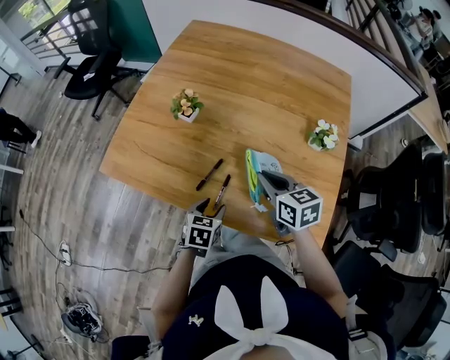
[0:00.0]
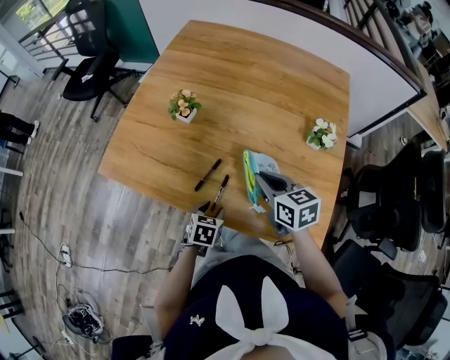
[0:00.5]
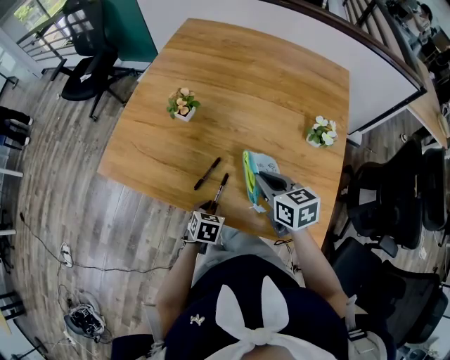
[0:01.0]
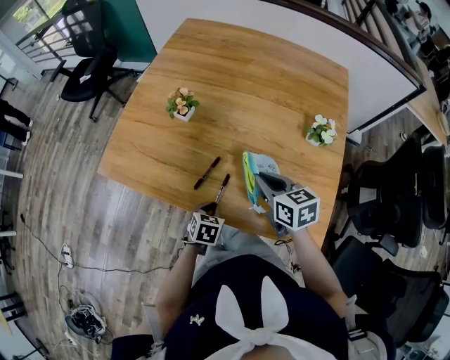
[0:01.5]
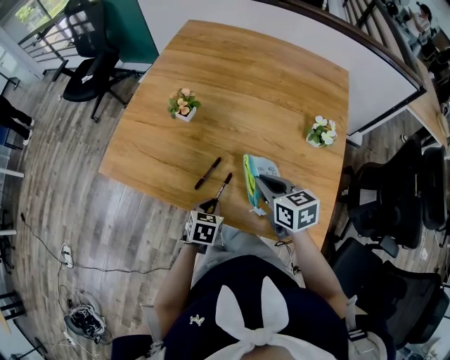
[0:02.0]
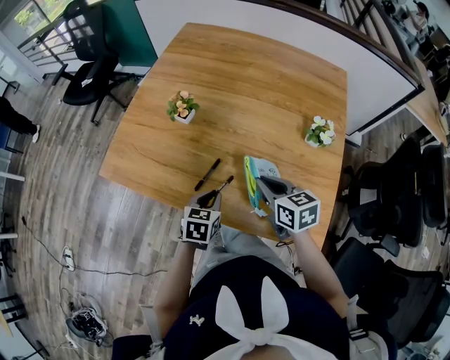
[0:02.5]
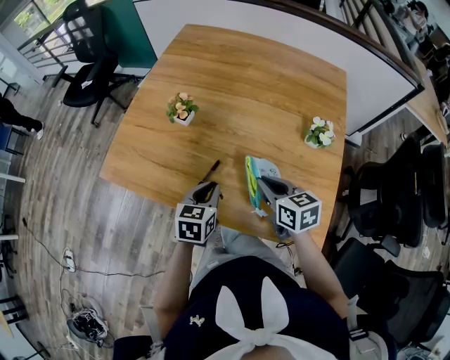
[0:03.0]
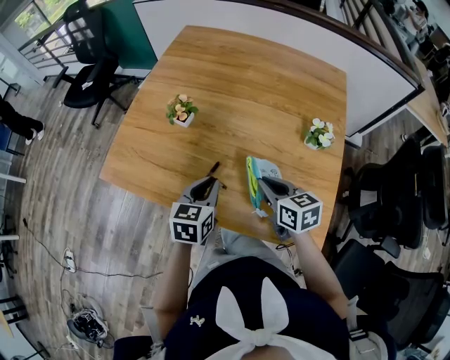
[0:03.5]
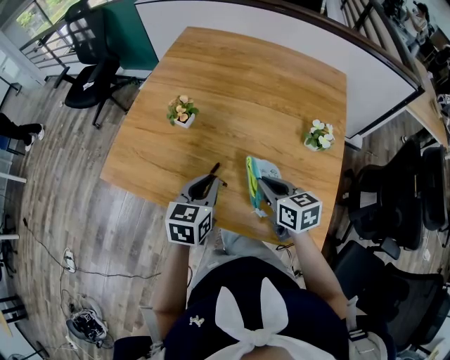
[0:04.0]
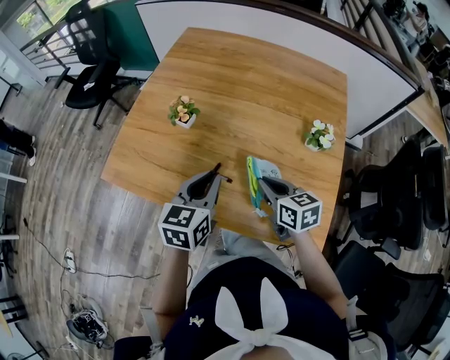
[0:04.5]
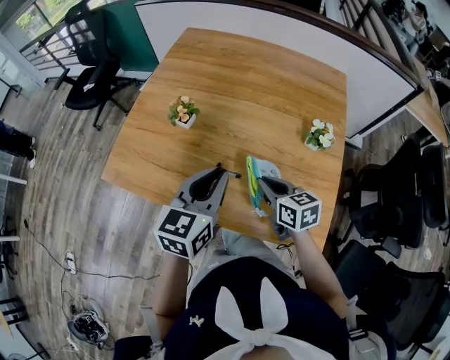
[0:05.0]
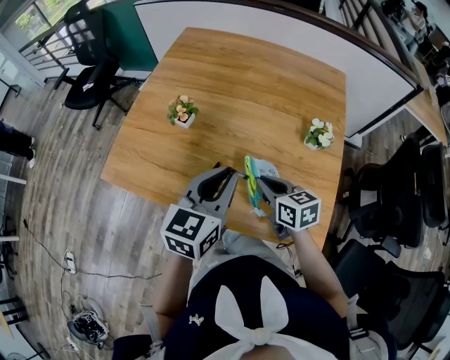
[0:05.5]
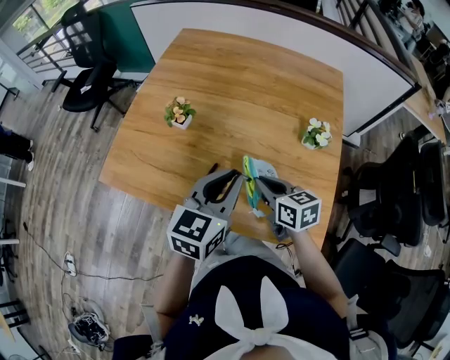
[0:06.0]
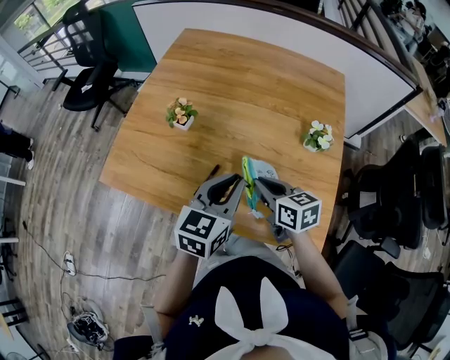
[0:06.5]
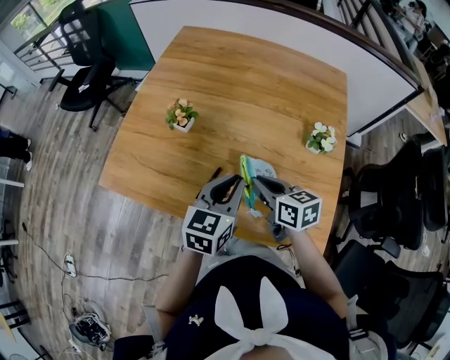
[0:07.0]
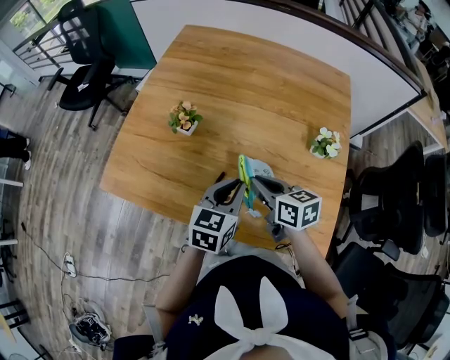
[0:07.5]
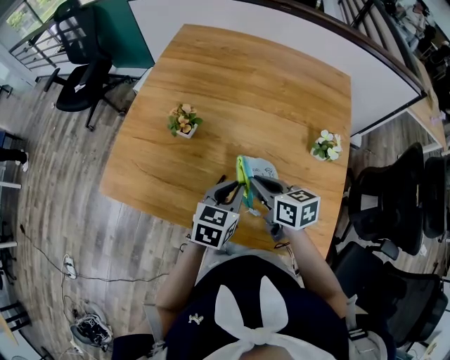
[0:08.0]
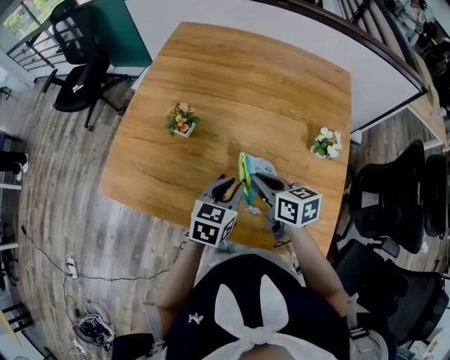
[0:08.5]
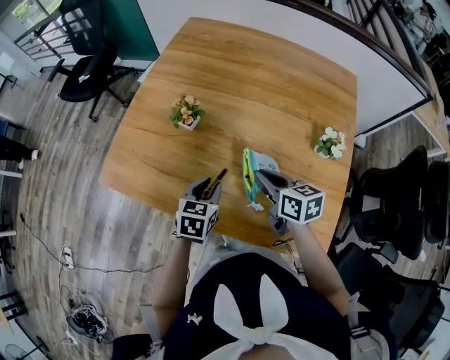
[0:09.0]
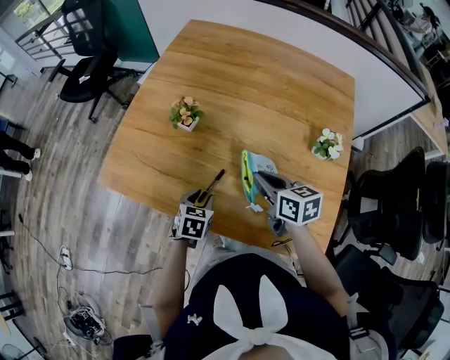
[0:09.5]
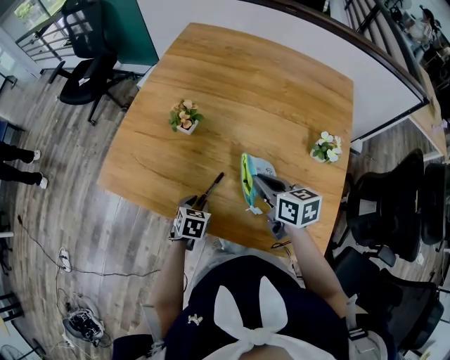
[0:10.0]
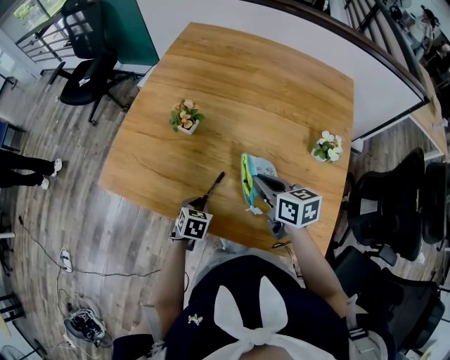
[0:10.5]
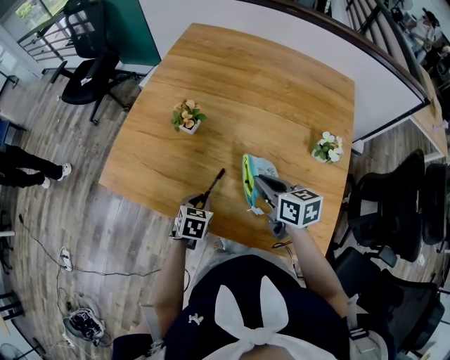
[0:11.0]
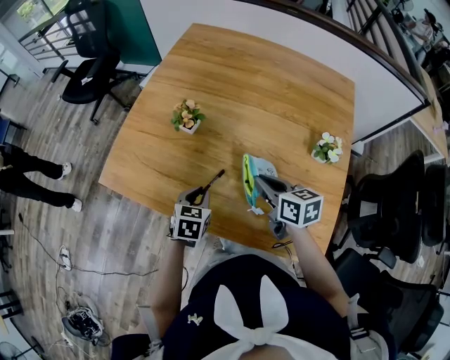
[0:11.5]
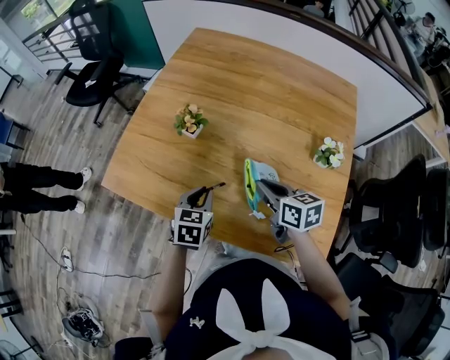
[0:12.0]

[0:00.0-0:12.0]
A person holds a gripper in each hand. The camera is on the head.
0:00.0 to 0:02.0: The left gripper closes.
0:02.0 to 0:04.0: The left gripper goes about 15 cm upward, and changes its angle by approximately 20 degrees.
0:04.0 to 0:06.0: The left gripper moves upward and to the right, approximately 10 cm.
0:06.0 to 0:08.0: The right gripper heads forward, covering some 5 cm. The left gripper shifts about 15 cm downward.
0:08.0 to 0:10.0: The left gripper shifts some 20 cm downward and to the left, swivels approximately 30 degrees, and opens.
0:10.0 to 0:12.0: The left gripper is displaced upward by roughly 10 cm.

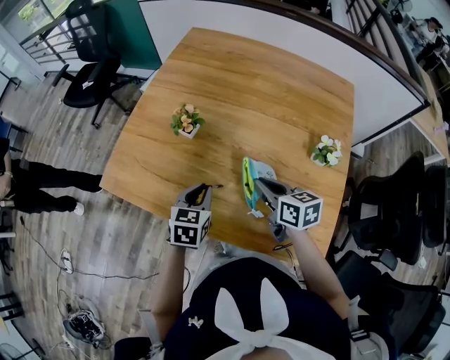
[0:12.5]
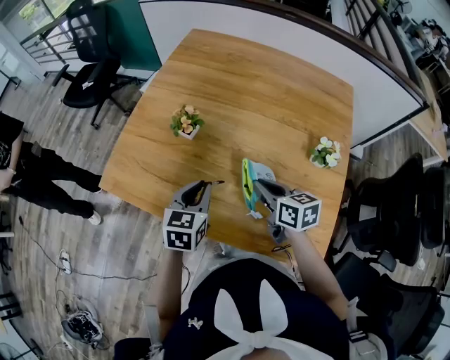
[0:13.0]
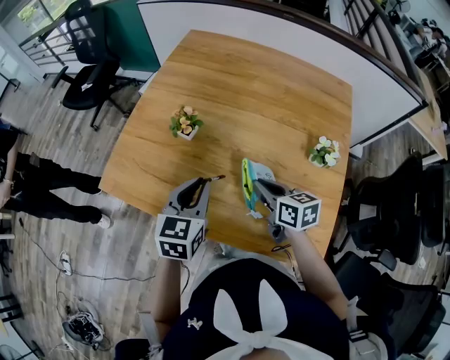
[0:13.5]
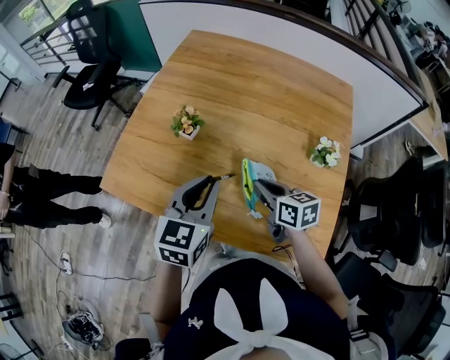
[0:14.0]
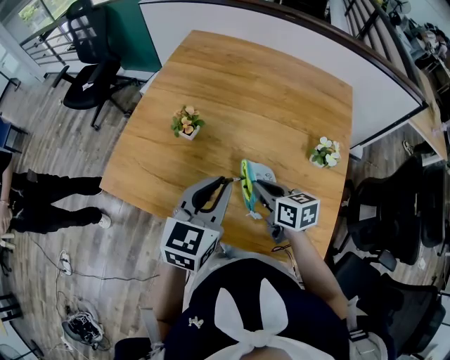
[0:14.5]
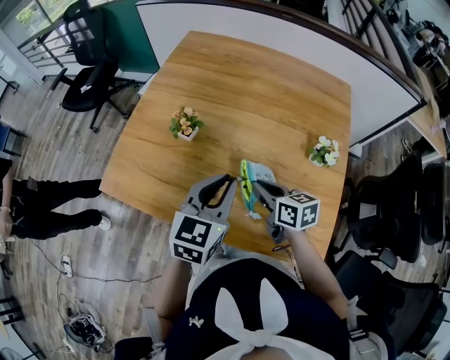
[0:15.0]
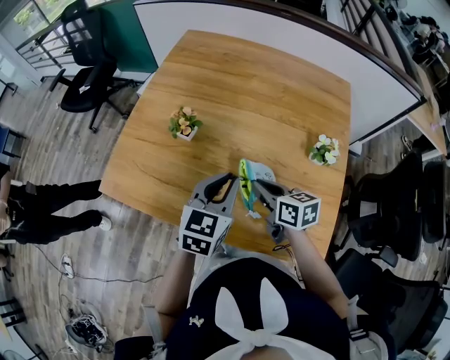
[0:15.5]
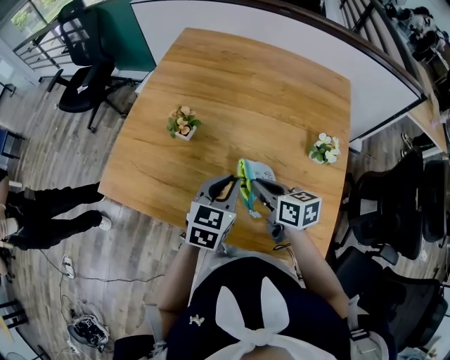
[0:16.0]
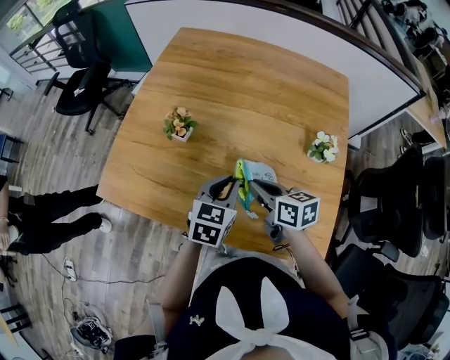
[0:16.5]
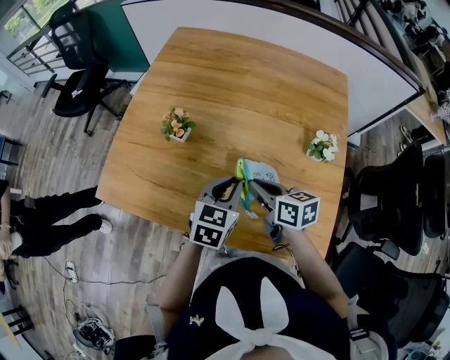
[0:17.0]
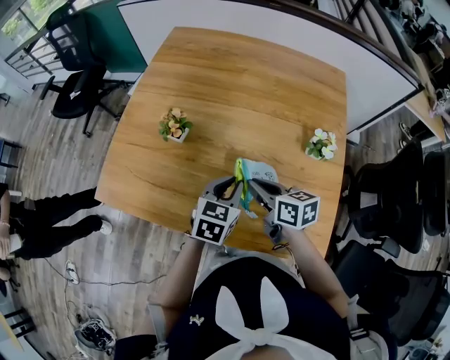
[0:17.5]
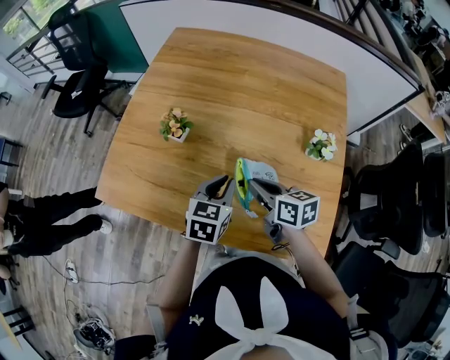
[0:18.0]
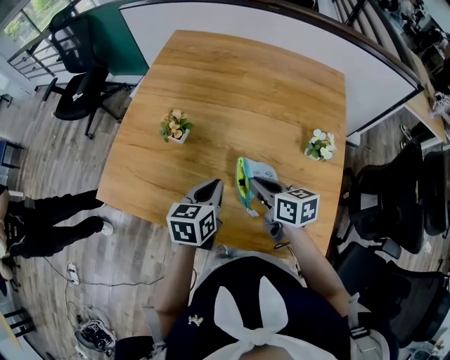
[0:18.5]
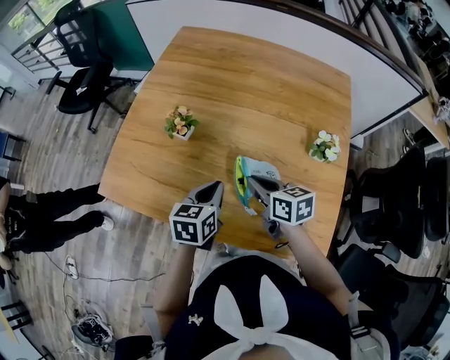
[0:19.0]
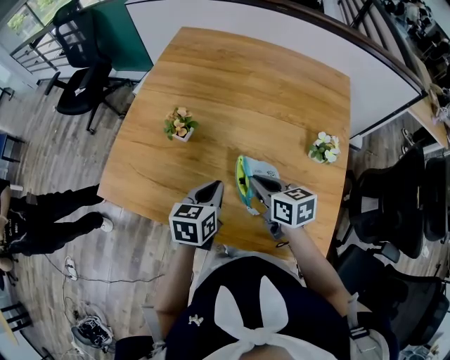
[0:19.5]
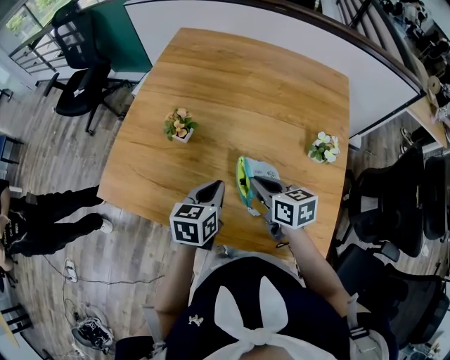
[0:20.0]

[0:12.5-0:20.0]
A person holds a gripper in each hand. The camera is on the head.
0:12.5 to 0:14.5: The left gripper heads upward, covering some 15 cm, and changes its angle by some 20 degrees.
0:14.5 to 0:16.5: The left gripper goes approximately 10 cm downward.
0:16.5 to 0:20.0: The grippers make only small movements.

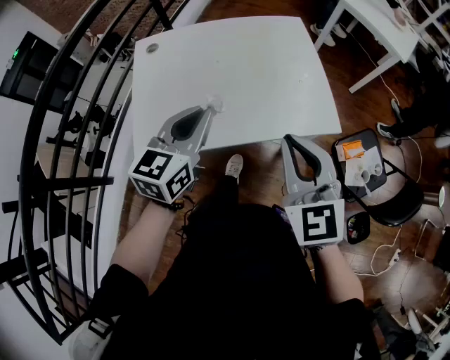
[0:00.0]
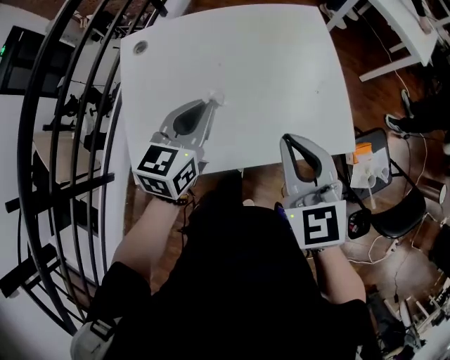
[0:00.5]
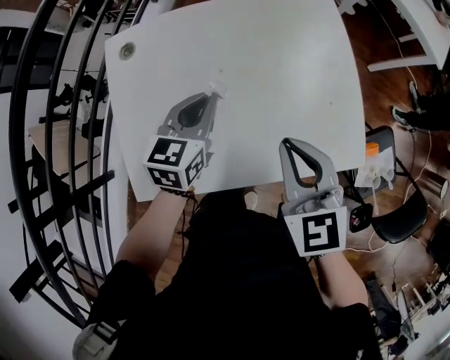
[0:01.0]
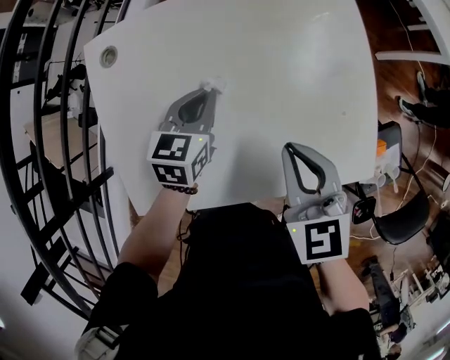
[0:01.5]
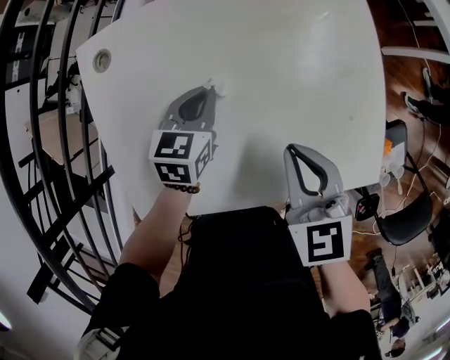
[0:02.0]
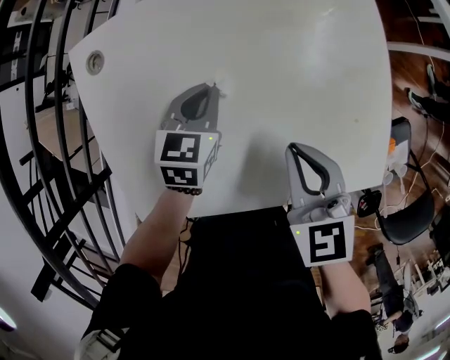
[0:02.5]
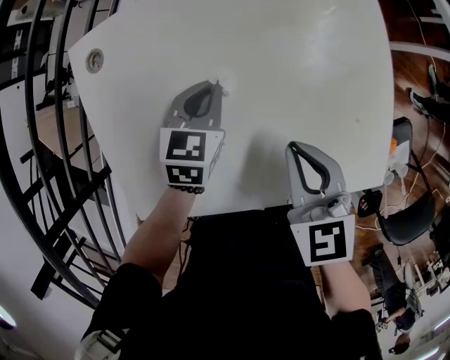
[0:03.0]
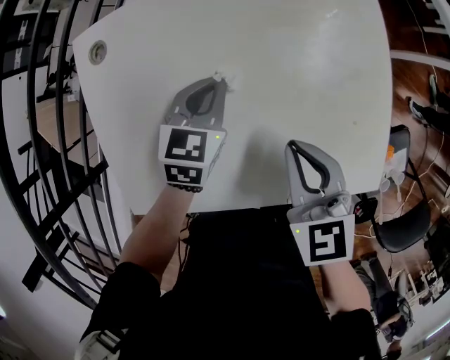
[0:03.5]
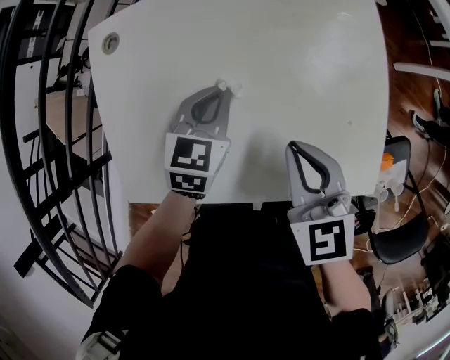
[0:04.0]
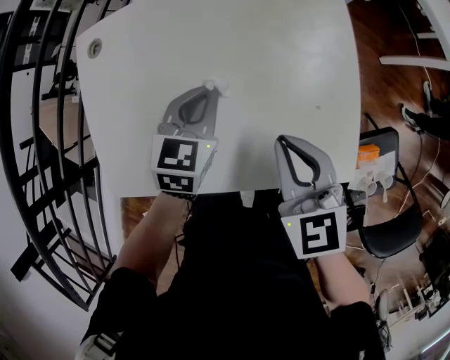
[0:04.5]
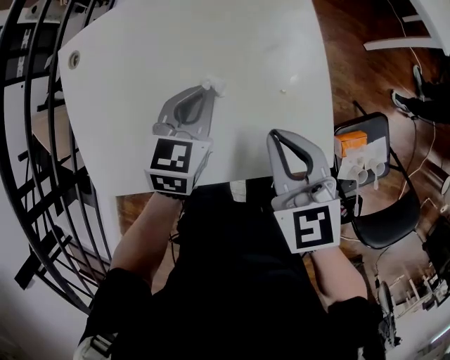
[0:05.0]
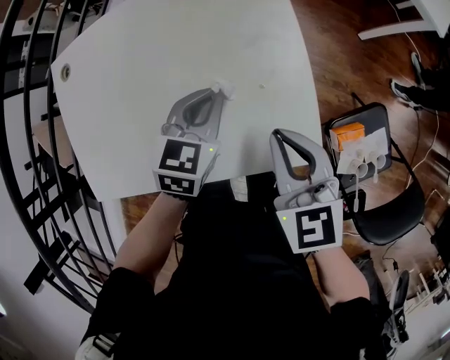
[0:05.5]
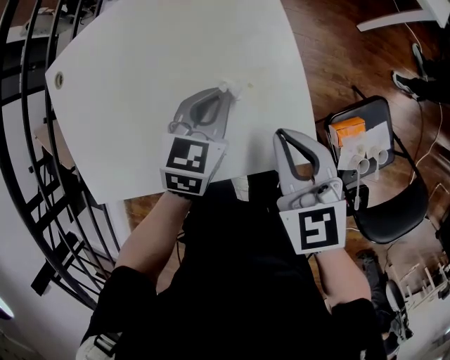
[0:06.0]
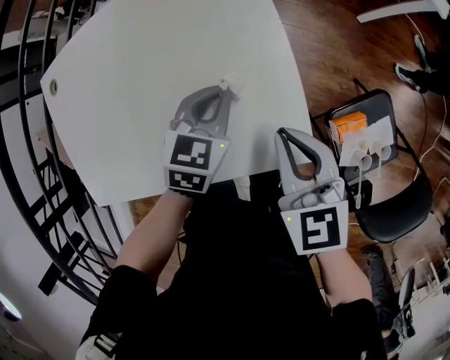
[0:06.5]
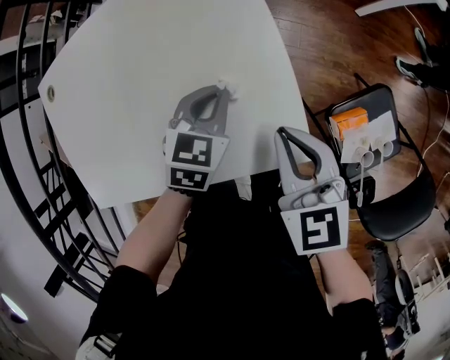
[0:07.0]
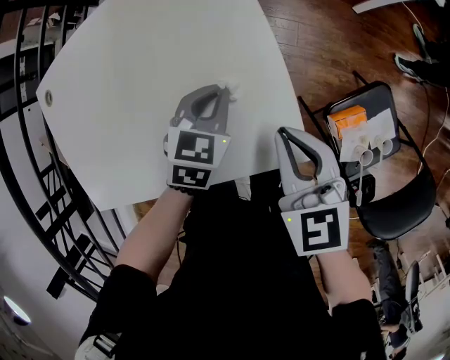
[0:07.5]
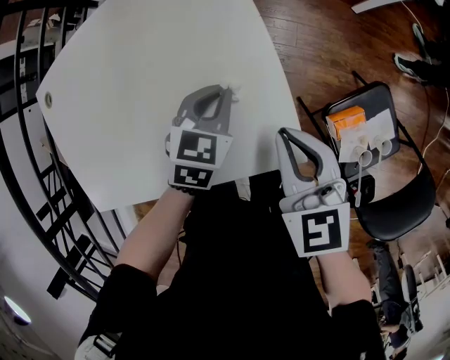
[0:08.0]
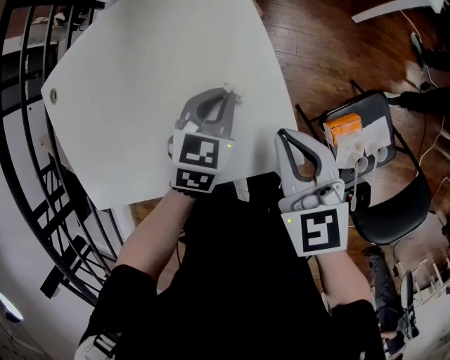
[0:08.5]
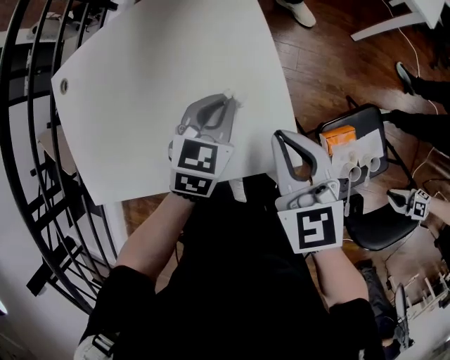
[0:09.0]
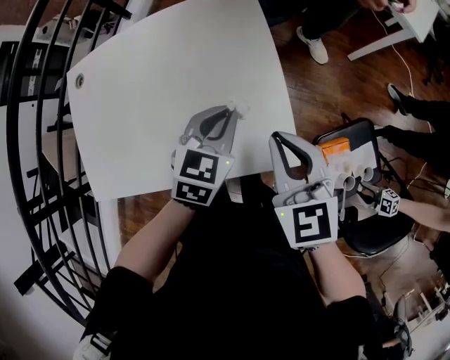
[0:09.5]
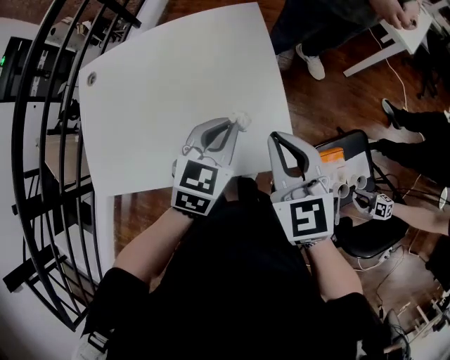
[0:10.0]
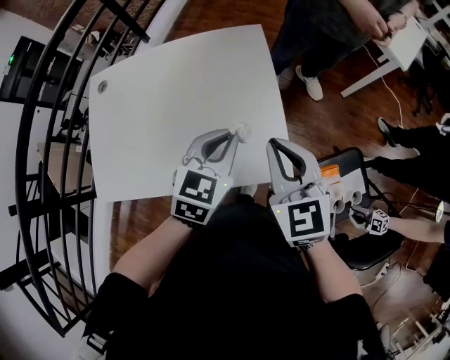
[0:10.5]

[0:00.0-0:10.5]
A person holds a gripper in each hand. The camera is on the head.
0:00.0 to 0:02.0: The right gripper moves forward and downward, roughly 35 cm, and changes its angle by about 30 degrees; the left gripper shifts approximately 40 cm downward and forward, and changes its angle by some 30 degrees.
0:02.0 to 0:04.0: The left gripper moves roughly 5 cm.
0:04.0 to 0:06.5: Both grippers move to the right, approximately 25 cm.
0:06.5 to 0:08.5: The grippers move only a little.
0:08.5 to 0:10.5: The left gripper is displaced upward and backward by roughly 20 cm; the right gripper goes roughly 10 cm upward.
